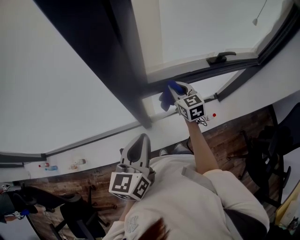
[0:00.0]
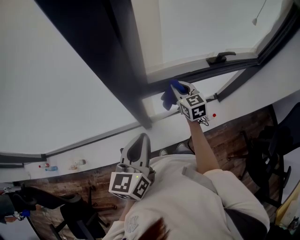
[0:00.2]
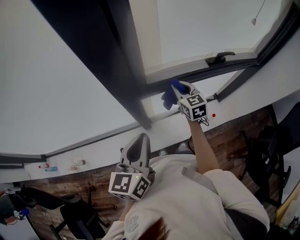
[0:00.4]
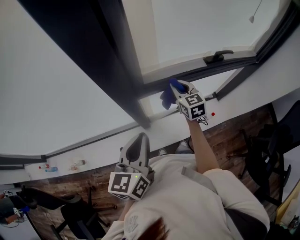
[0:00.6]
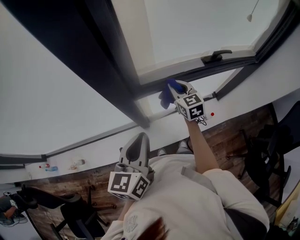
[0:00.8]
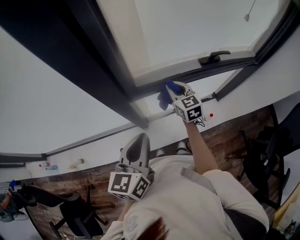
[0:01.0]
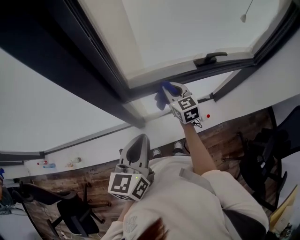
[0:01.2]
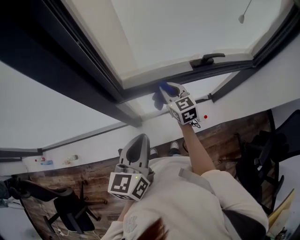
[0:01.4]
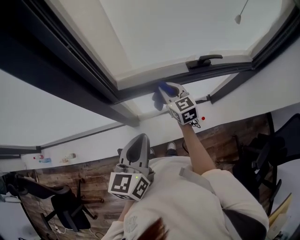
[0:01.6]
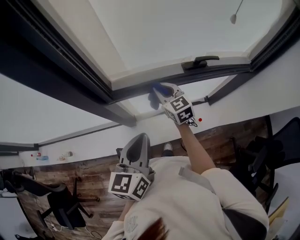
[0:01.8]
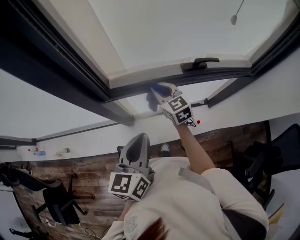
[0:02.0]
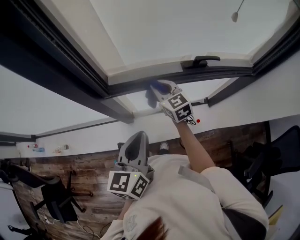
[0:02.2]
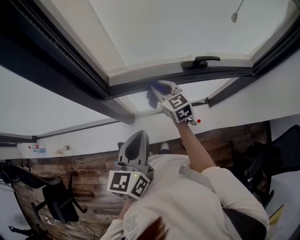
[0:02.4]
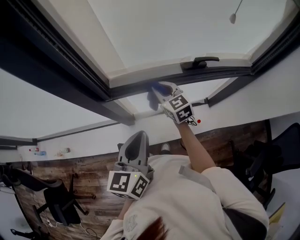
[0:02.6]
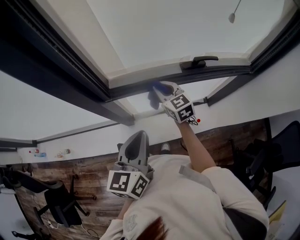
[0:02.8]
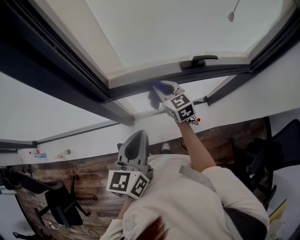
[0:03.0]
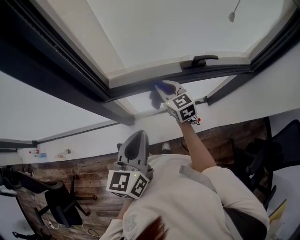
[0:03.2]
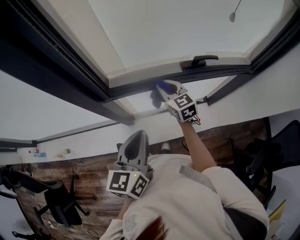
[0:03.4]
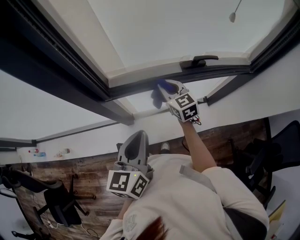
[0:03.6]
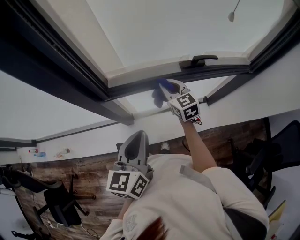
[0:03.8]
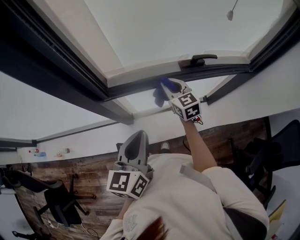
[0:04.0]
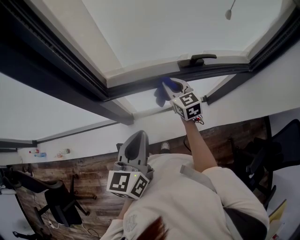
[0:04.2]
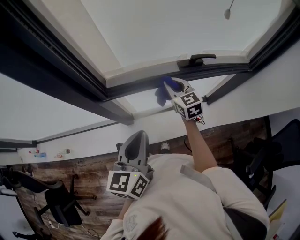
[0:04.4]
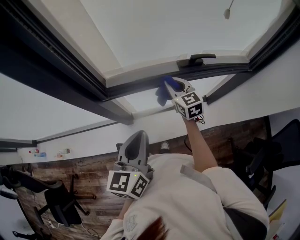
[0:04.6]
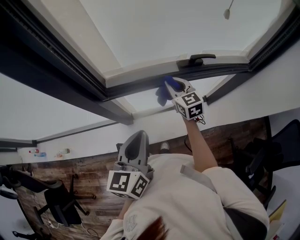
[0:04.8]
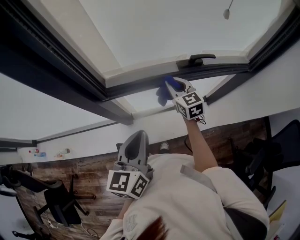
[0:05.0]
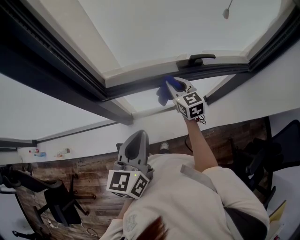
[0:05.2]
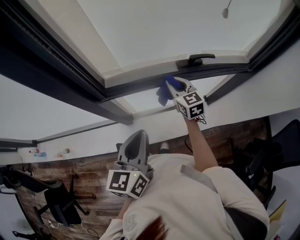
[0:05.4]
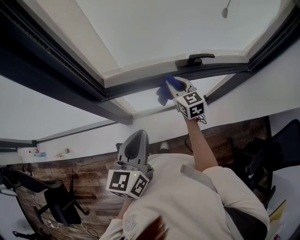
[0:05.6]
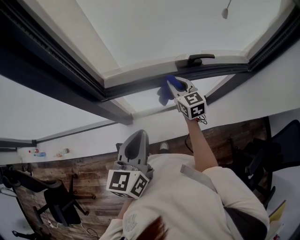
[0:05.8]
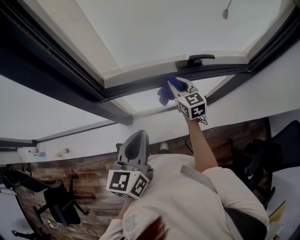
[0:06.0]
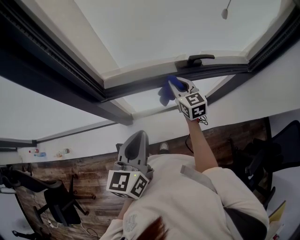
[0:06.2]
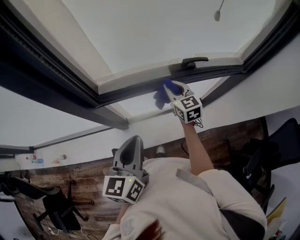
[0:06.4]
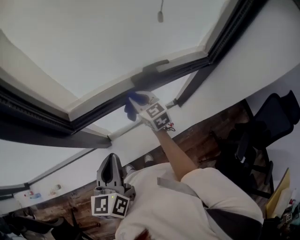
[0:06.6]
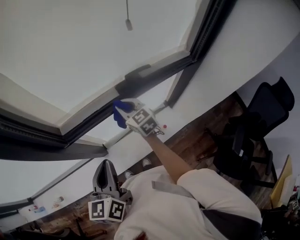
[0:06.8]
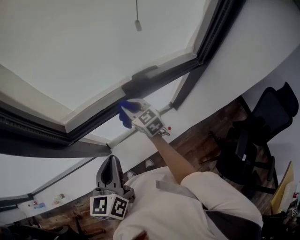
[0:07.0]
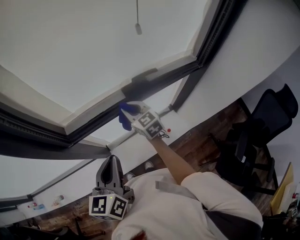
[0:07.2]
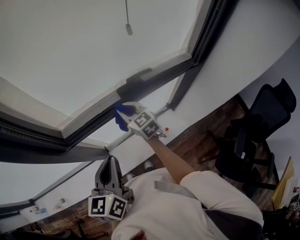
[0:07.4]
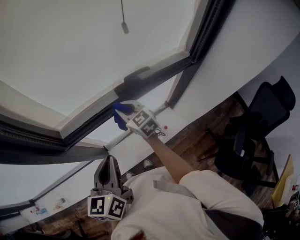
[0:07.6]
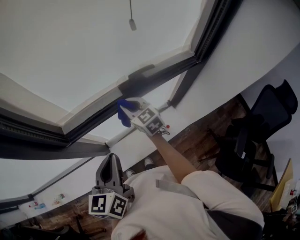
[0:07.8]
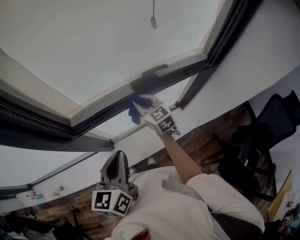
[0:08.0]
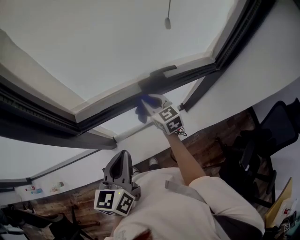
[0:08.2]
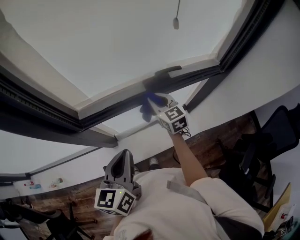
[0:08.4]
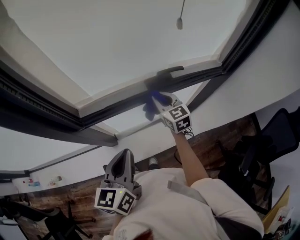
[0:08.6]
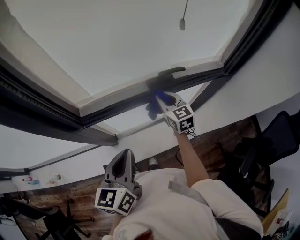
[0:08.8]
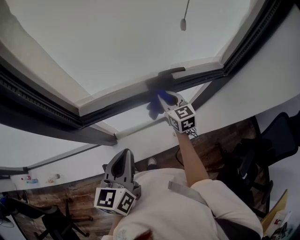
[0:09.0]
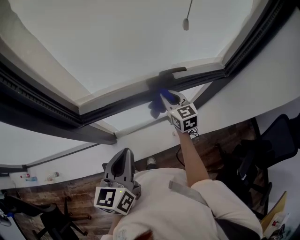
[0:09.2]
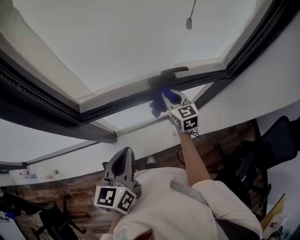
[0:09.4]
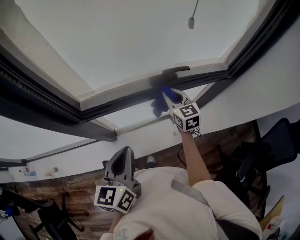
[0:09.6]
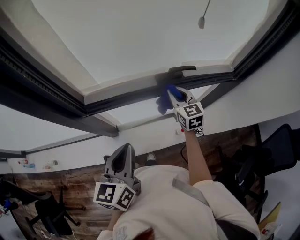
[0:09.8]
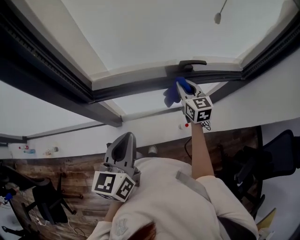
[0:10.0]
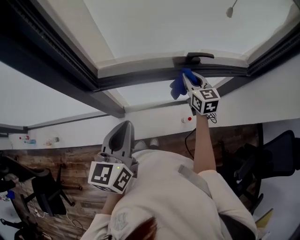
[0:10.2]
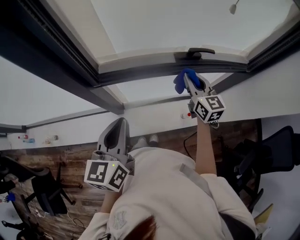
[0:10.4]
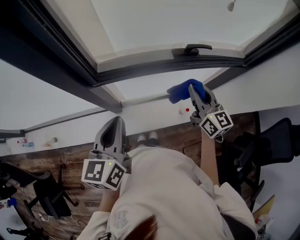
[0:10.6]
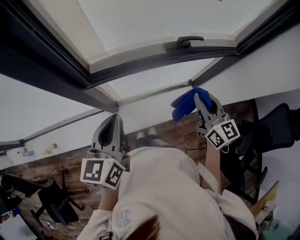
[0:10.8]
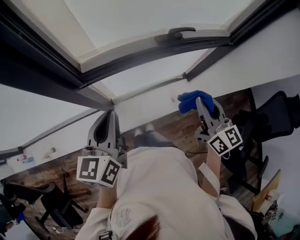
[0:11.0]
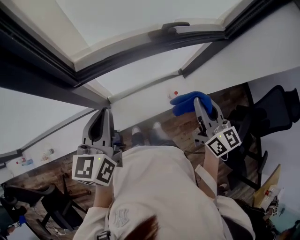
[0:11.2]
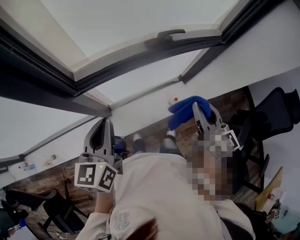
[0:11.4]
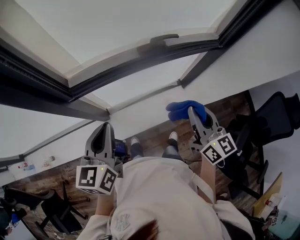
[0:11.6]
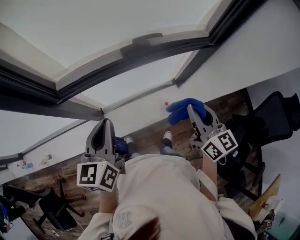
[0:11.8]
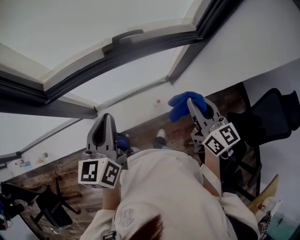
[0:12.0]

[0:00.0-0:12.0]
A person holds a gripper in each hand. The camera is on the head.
0:00.0 to 0:01.6: The right gripper shifts about 10 cm to the right. Meanwhile the left gripper heads to the right, covering approximately 15 cm.
0:01.6 to 0:03.0: The grippers stay close to where they were, moving slightly.
0:03.0 to 0:04.4: The right gripper is displaced to the right by roughly 5 cm.
0:04.4 to 0:06.0: The grippers move only a little.
0:06.0 to 0:07.6: The left gripper changes place by roughly 5 cm.
0:07.6 to 0:09.0: The right gripper travels to the right by about 5 cm.
0:09.0 to 0:10.4: The left gripper moves to the left, some 5 cm. Meanwhile the right gripper ends up about 5 cm from where it was.
0:10.4 to 0:12.0: The left gripper is displaced to the right by approximately 20 cm; the right gripper heads to the right and backward, covering approximately 30 cm.

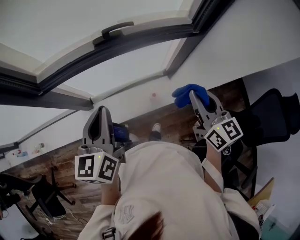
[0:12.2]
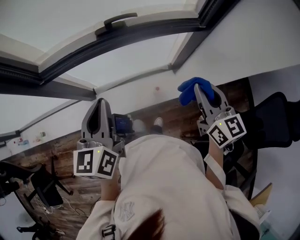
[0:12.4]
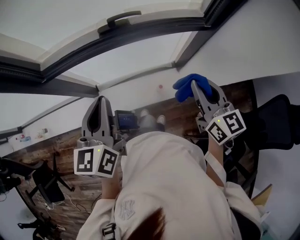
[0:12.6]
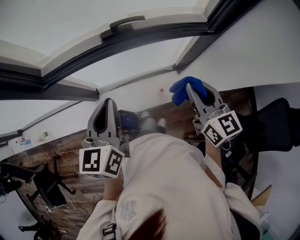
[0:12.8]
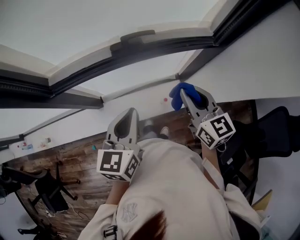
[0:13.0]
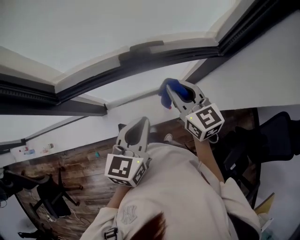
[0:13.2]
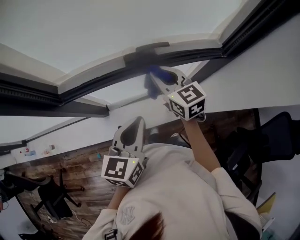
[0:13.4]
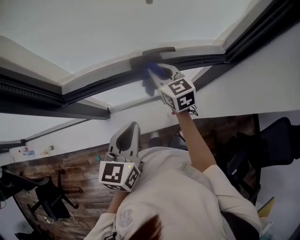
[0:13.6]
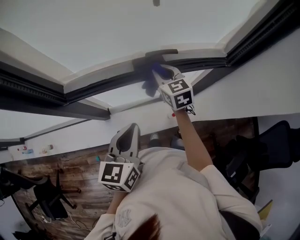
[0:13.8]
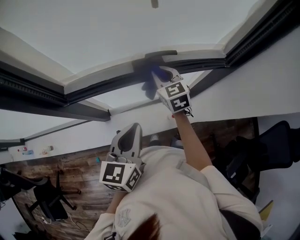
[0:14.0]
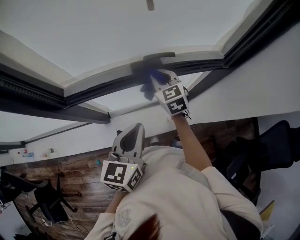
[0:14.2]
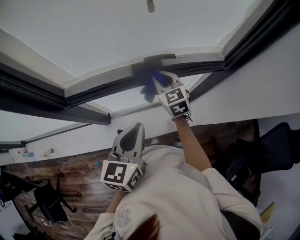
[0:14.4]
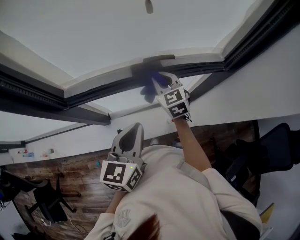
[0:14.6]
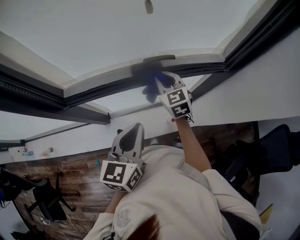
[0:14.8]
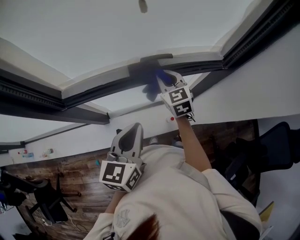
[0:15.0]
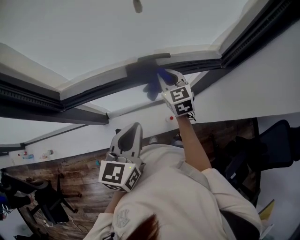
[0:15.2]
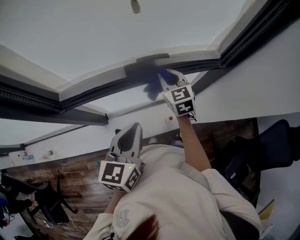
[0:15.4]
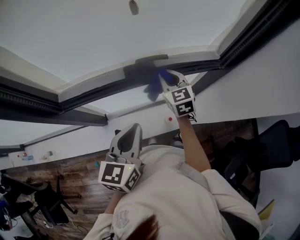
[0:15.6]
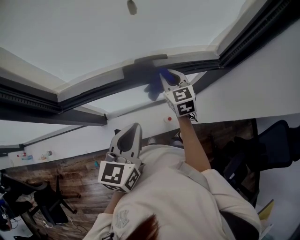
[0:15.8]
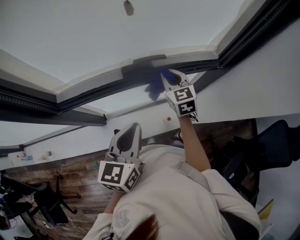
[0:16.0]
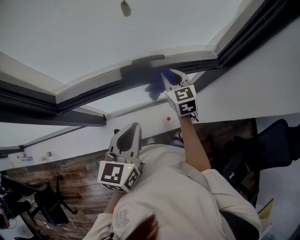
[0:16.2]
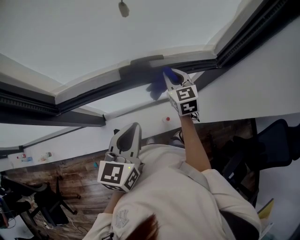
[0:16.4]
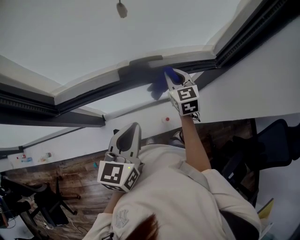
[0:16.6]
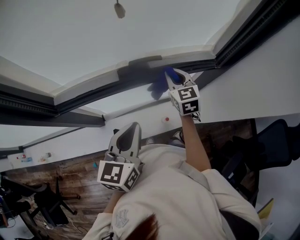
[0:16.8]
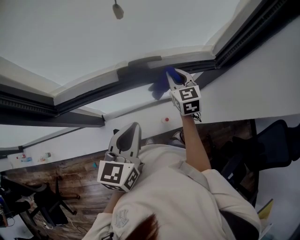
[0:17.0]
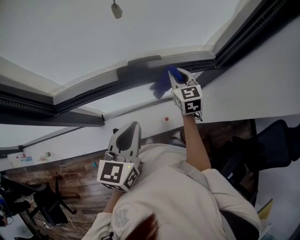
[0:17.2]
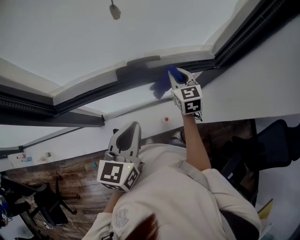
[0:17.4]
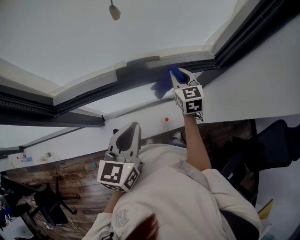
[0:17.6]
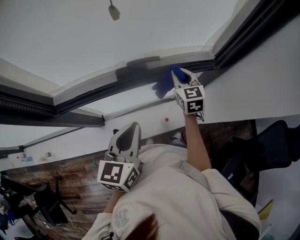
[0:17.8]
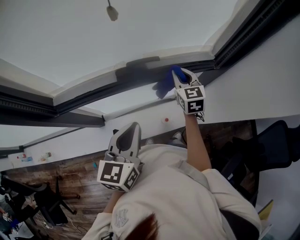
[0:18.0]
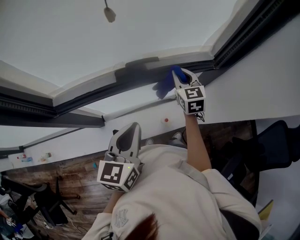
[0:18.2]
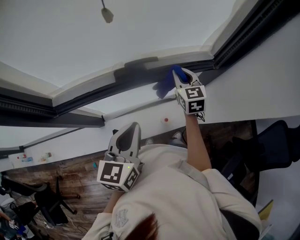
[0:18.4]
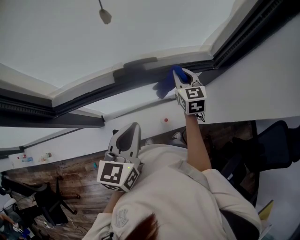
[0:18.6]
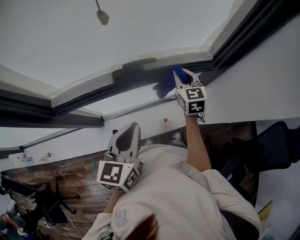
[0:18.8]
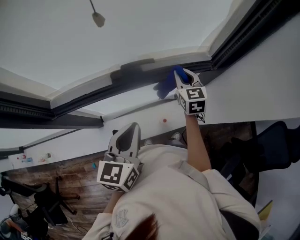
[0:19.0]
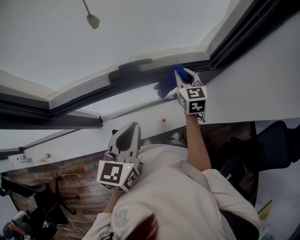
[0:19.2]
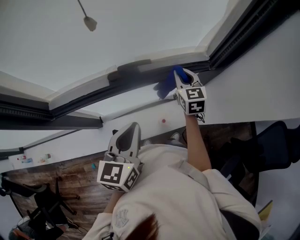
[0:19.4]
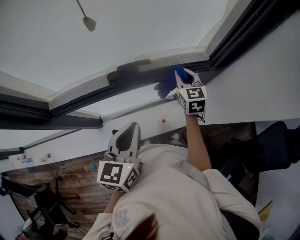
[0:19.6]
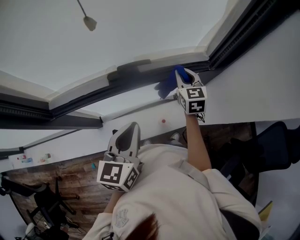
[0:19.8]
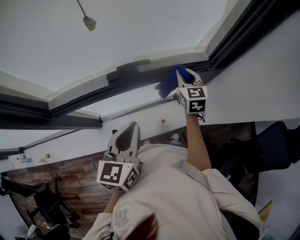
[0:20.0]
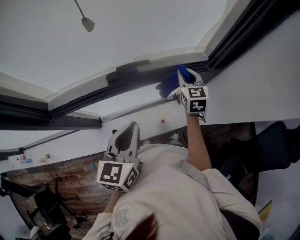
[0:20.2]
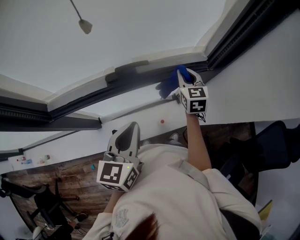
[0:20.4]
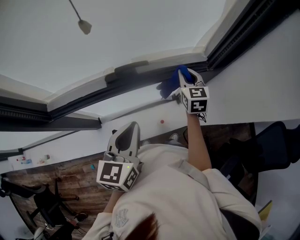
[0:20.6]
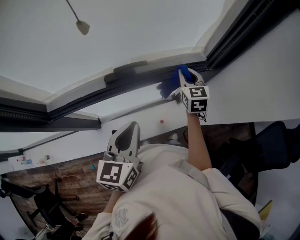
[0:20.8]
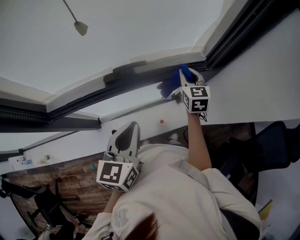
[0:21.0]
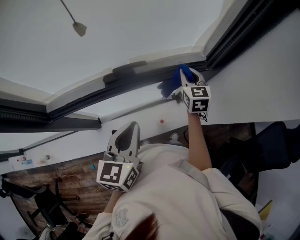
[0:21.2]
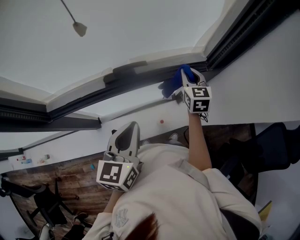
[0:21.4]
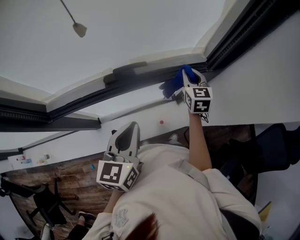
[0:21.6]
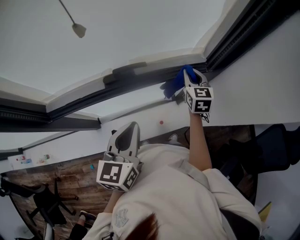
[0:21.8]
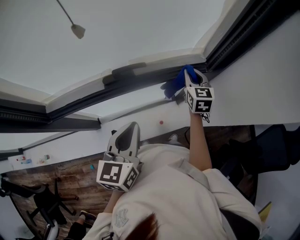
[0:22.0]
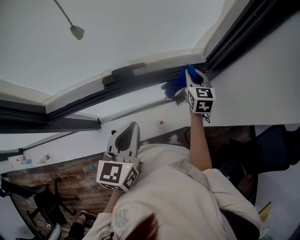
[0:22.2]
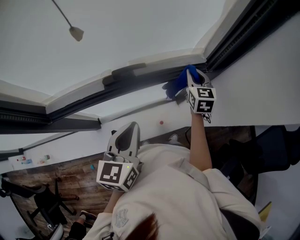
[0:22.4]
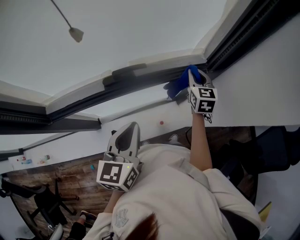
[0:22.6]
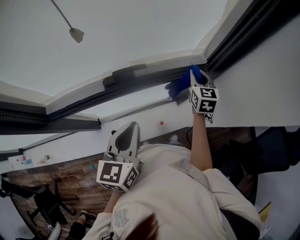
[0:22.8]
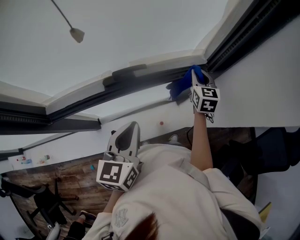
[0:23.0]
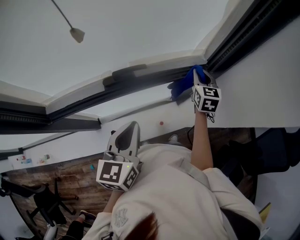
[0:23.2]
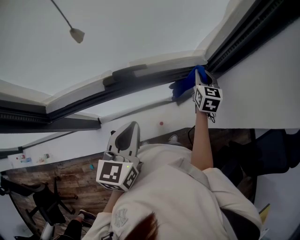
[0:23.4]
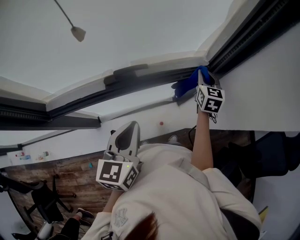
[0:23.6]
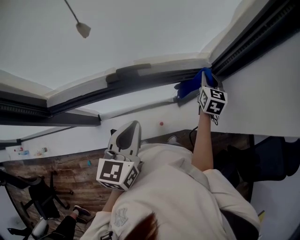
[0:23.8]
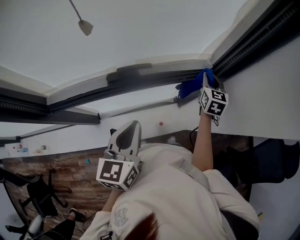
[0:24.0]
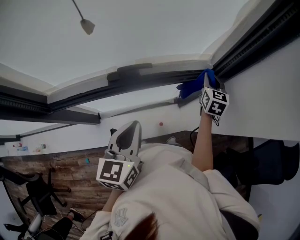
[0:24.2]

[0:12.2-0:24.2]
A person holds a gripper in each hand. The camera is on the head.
0:12.2 to 0:13.8: The left gripper shifts by about 5 cm. Meanwhile the right gripper shifts some 35 cm forward and to the left, and turns by roughly 20 degrees.
0:13.8 to 0:15.2: The grippers move only a little.
0:15.2 to 0:16.6: The right gripper goes approximately 5 cm to the right.
0:16.6 to 0:18.2: The grippers stay close to where they were, moving slightly.
0:18.2 to 0:19.8: The grippers make only small movements.
0:19.8 to 0:21.2: The grippers make only small movements.
0:21.2 to 0:22.6: The grippers stay close to where they were, moving slightly.
0:22.6 to 0:24.2: The right gripper moves to the right, roughly 5 cm.
